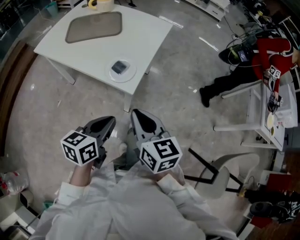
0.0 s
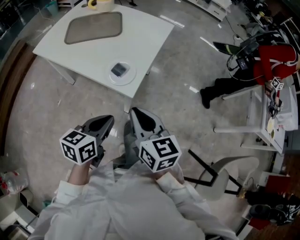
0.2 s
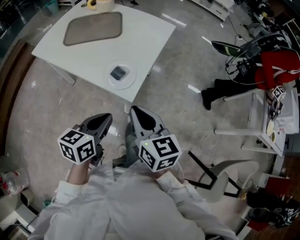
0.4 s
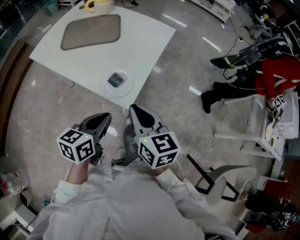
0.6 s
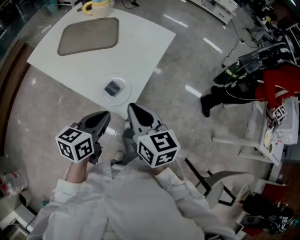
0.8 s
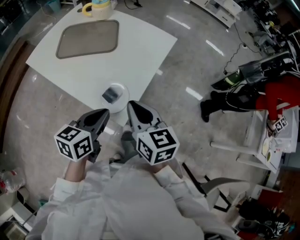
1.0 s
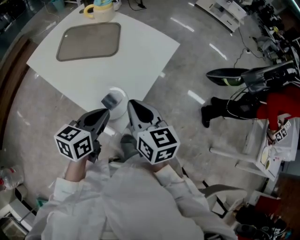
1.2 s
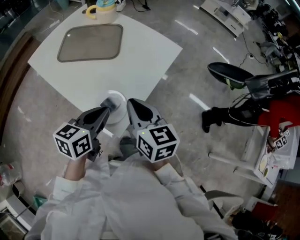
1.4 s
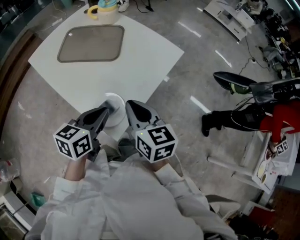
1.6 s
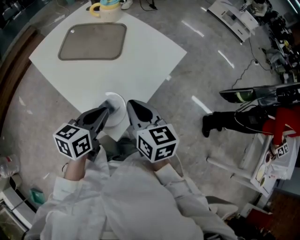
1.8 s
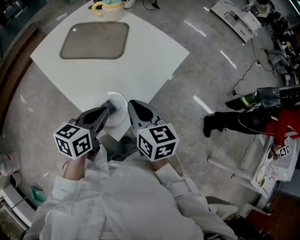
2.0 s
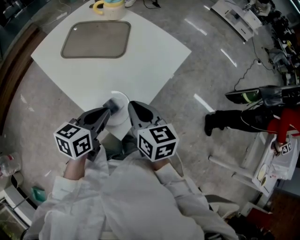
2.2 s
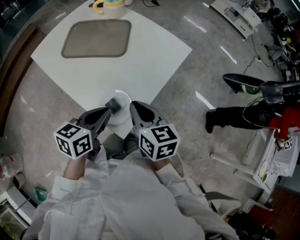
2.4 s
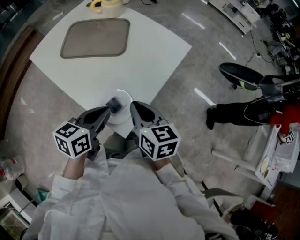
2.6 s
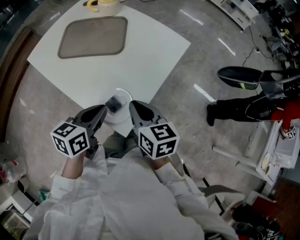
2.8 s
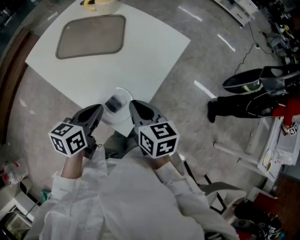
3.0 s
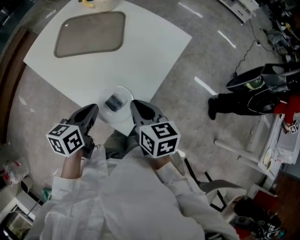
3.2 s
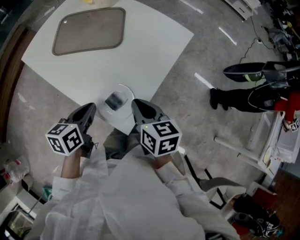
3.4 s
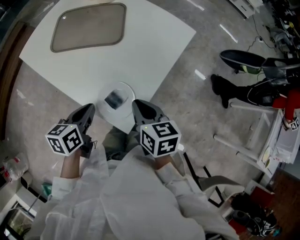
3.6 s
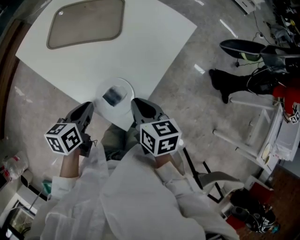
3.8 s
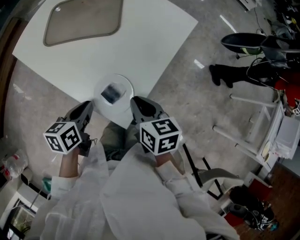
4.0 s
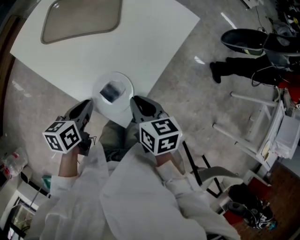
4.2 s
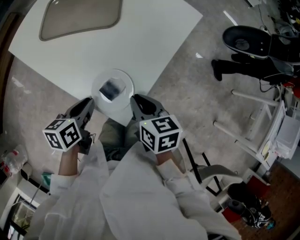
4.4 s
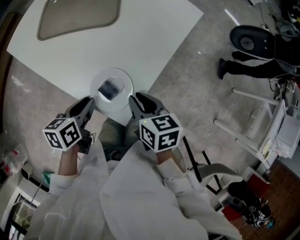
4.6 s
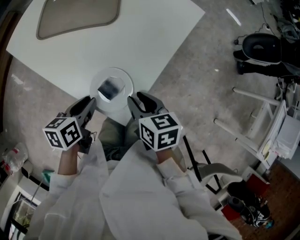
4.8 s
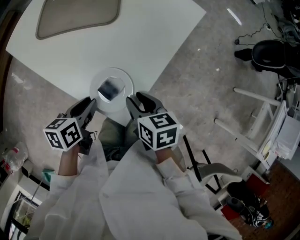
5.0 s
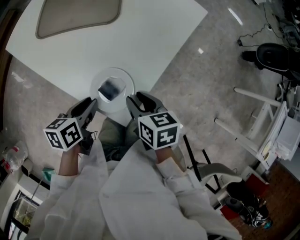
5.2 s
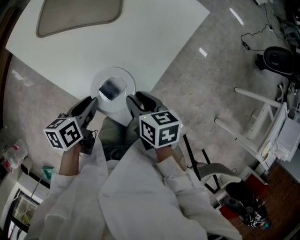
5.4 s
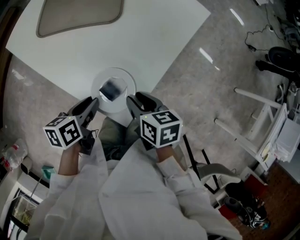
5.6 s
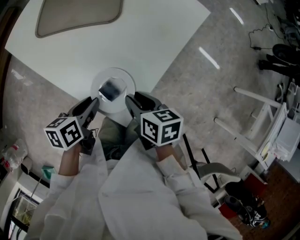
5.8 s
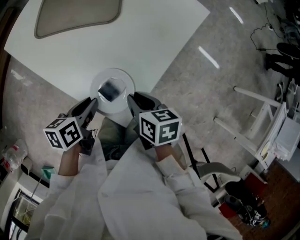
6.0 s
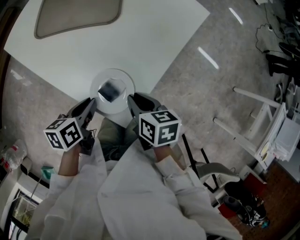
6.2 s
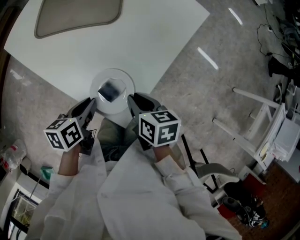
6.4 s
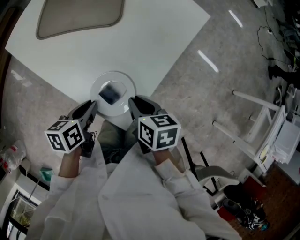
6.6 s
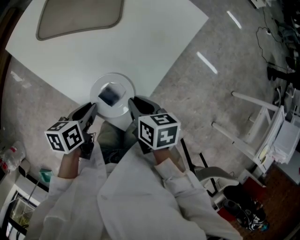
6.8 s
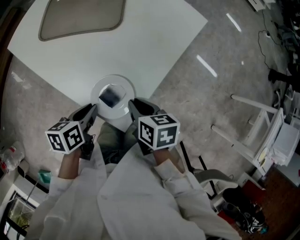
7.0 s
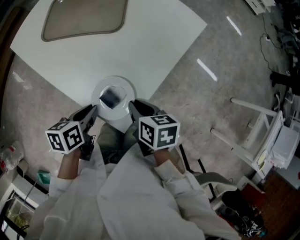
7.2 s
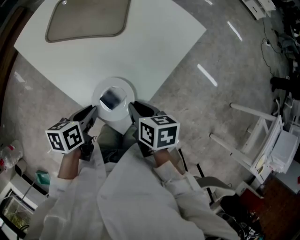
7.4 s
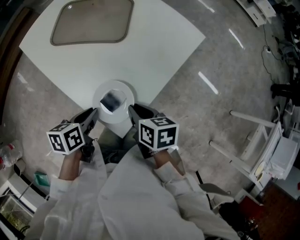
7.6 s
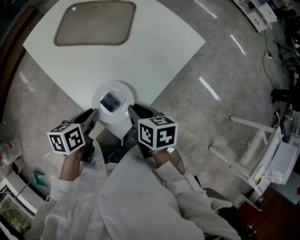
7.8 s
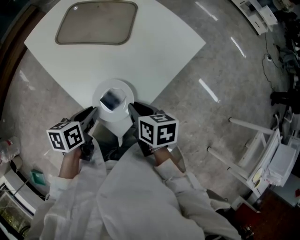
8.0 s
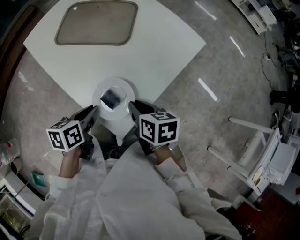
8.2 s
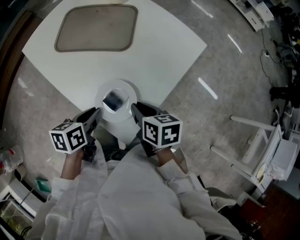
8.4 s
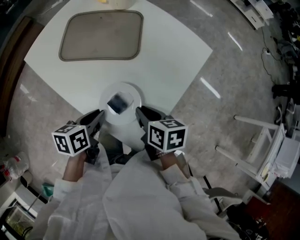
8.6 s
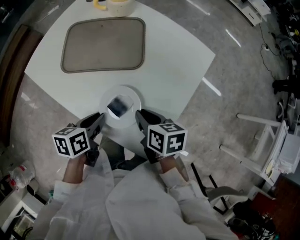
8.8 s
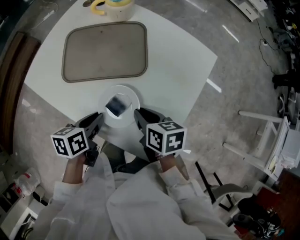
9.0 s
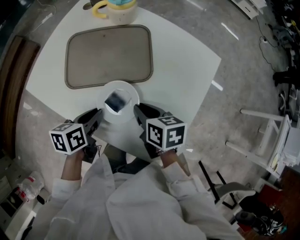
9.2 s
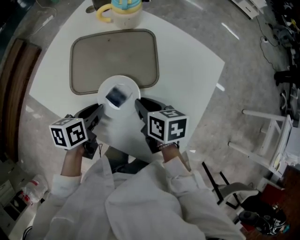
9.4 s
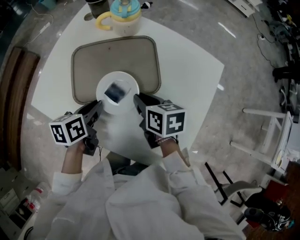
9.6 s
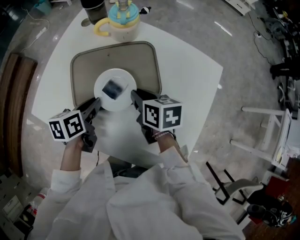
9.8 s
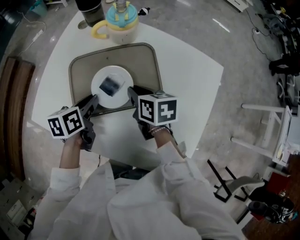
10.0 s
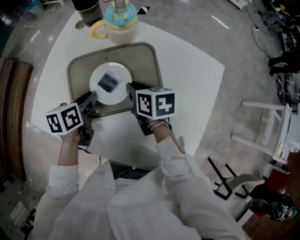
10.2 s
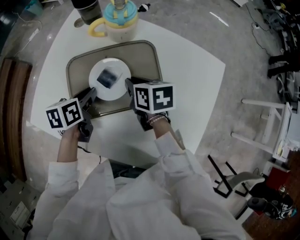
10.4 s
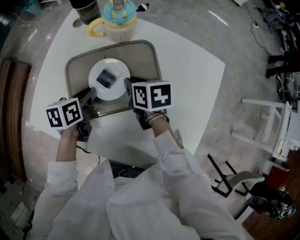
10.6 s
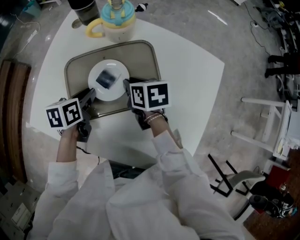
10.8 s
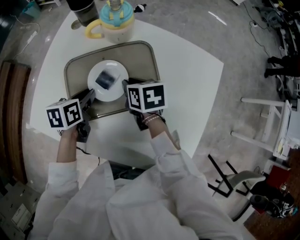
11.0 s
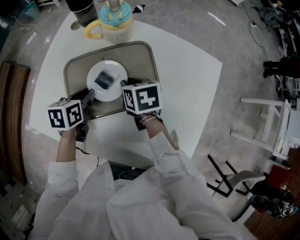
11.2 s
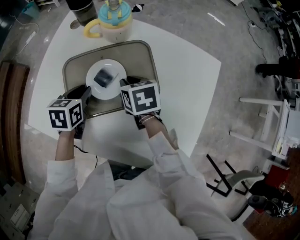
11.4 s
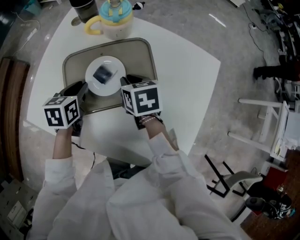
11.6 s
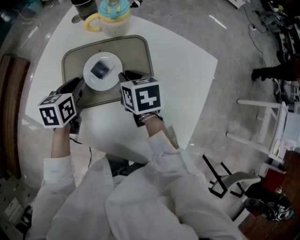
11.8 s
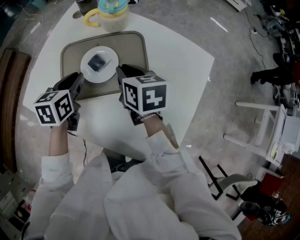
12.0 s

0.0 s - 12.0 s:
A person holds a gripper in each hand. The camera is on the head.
0.0 s - 1.6 s: The two grippers go some 25 cm forward.
1.6 s - 3.0 s: The left gripper moves to the left, about 5 cm. The right gripper is displaced downward by some 5 cm.
3.0 s - 4.4 s: Both grippers travel together downward, approximately 10 cm.
4.4 s - 7.6 s: The grippers stay close to where they were, moving slightly.
7.6 s - 9.0 s: Both grippers move forward and to the left, roughly 15 cm.
9.0 s - 10.4 s: The two grippers go some 25 cm forward and to the left.
10.4 s - 12.0 s: Both grippers move upward, some 5 cm. The left gripper swivels approximately 20 degrees.

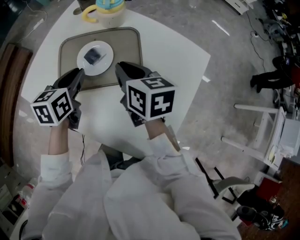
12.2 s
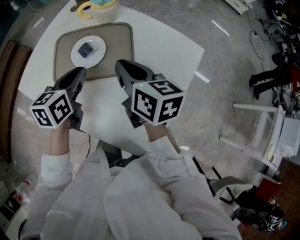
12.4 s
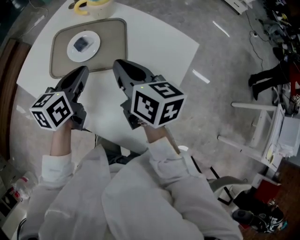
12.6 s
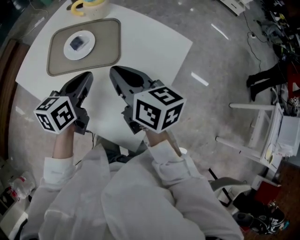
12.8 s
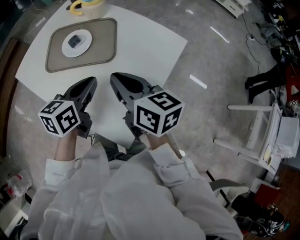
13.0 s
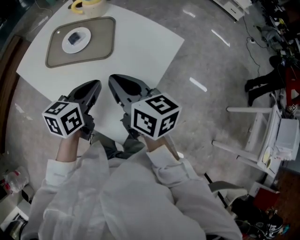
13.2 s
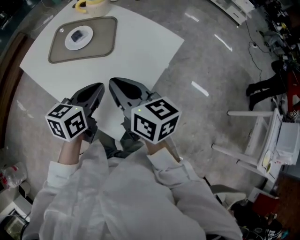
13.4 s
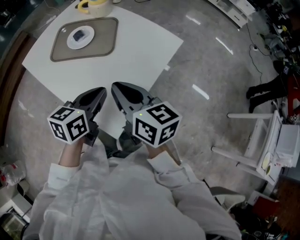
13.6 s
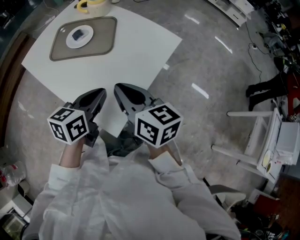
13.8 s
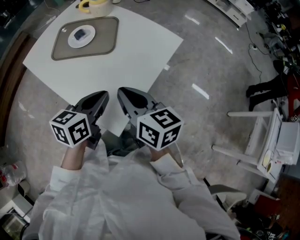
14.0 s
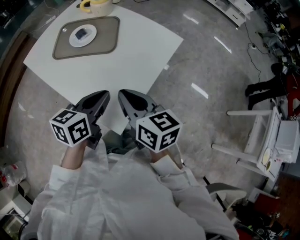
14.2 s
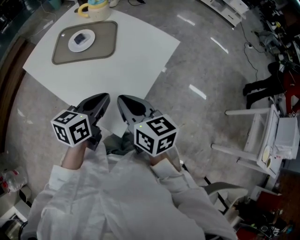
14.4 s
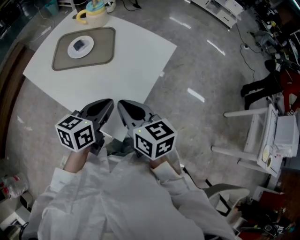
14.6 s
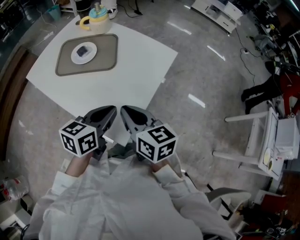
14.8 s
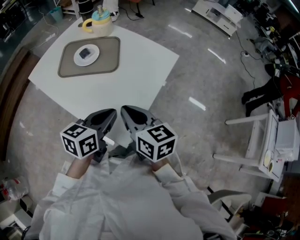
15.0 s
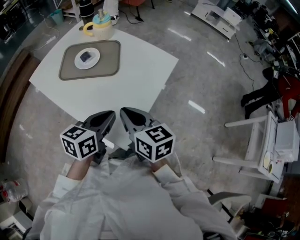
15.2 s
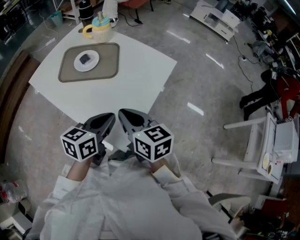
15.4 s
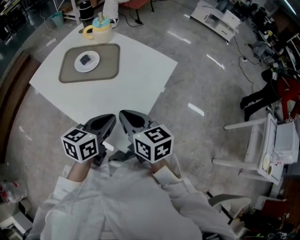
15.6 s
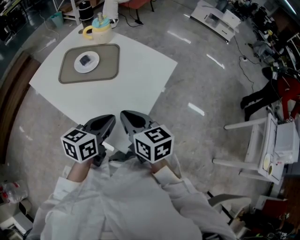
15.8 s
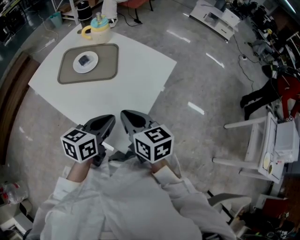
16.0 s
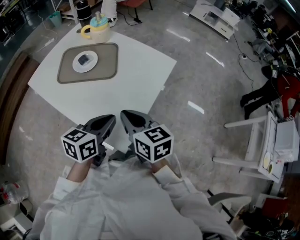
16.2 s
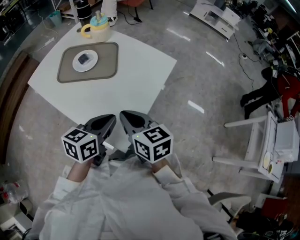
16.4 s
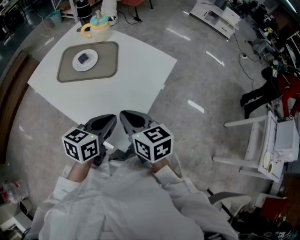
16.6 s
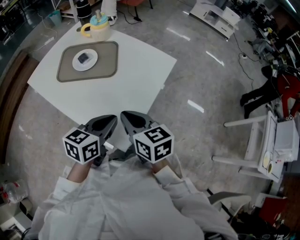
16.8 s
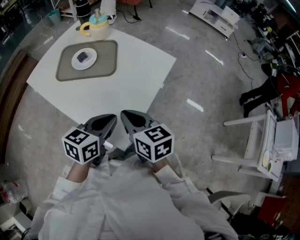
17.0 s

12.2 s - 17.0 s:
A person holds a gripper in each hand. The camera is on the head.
12.2 s - 13.8 s: Both grippers travel together backward and to the right, roughly 30 cm.
13.8 s - 17.0 s: There are only small adjustments of the grippers.

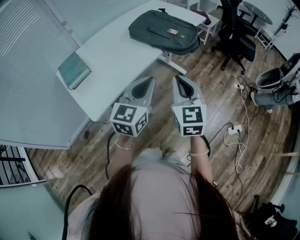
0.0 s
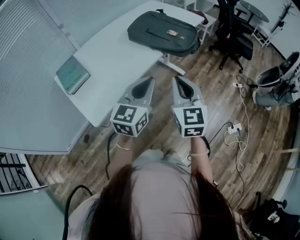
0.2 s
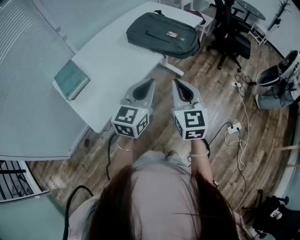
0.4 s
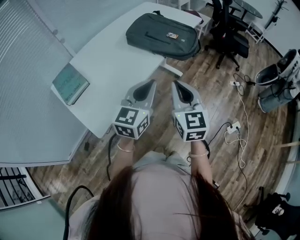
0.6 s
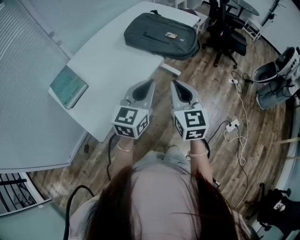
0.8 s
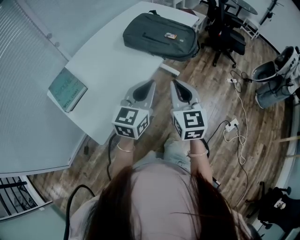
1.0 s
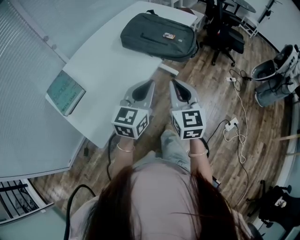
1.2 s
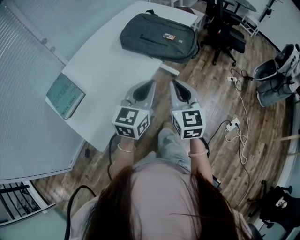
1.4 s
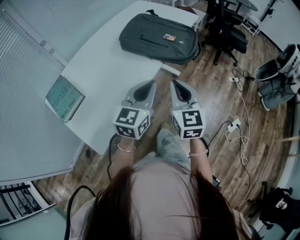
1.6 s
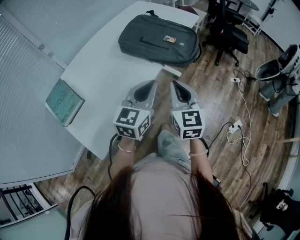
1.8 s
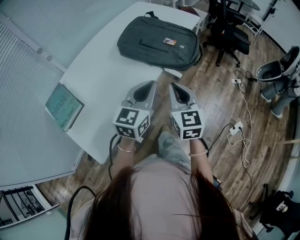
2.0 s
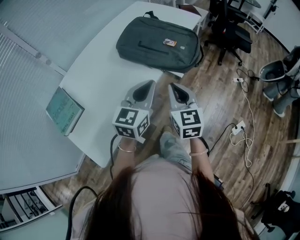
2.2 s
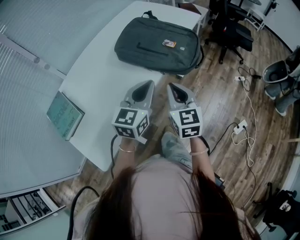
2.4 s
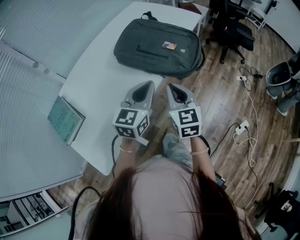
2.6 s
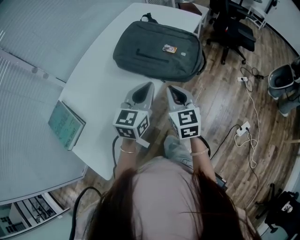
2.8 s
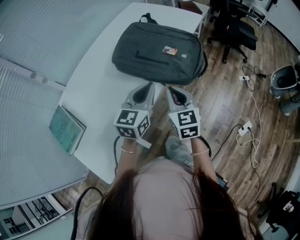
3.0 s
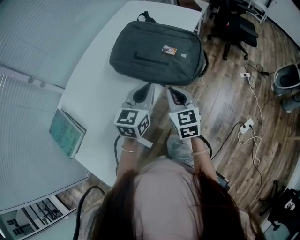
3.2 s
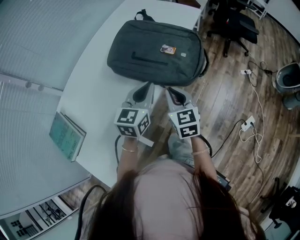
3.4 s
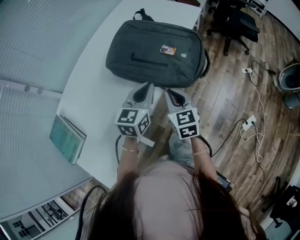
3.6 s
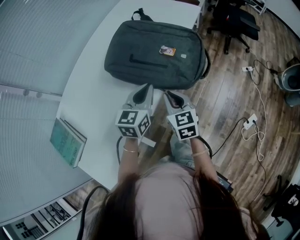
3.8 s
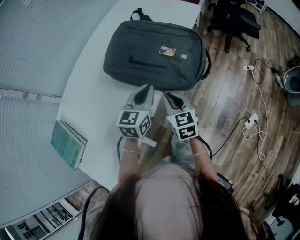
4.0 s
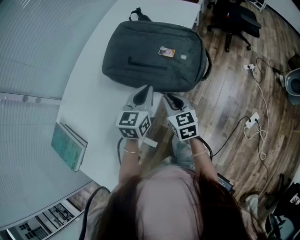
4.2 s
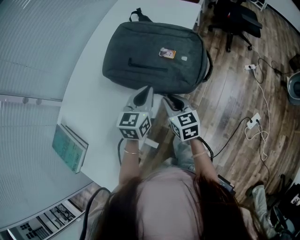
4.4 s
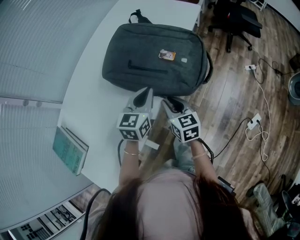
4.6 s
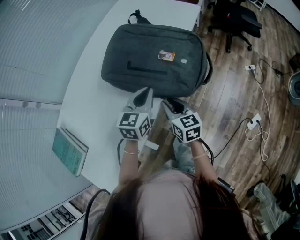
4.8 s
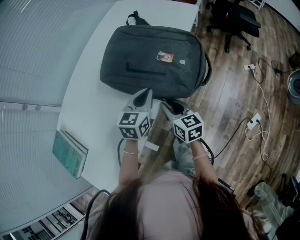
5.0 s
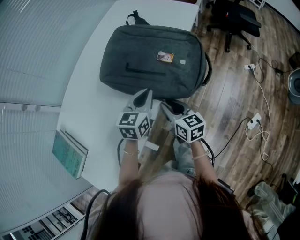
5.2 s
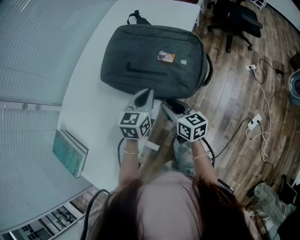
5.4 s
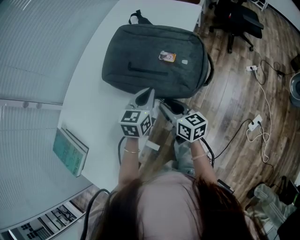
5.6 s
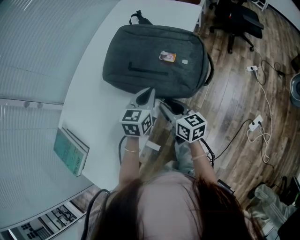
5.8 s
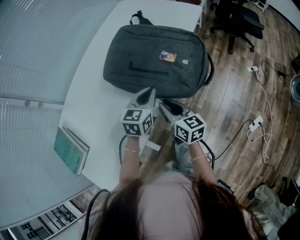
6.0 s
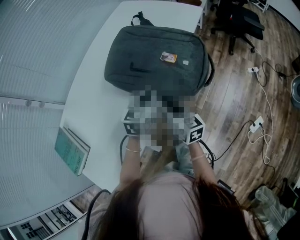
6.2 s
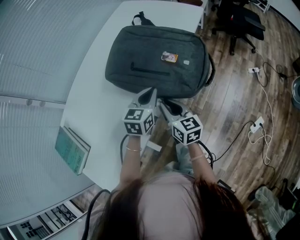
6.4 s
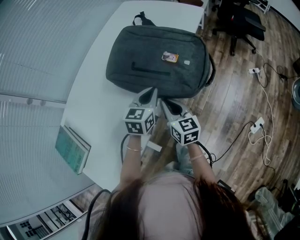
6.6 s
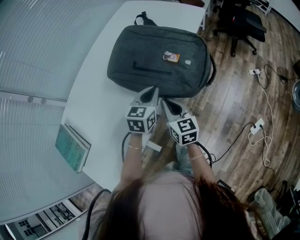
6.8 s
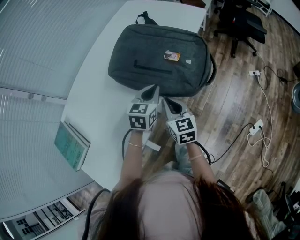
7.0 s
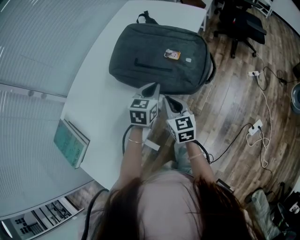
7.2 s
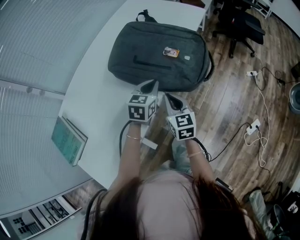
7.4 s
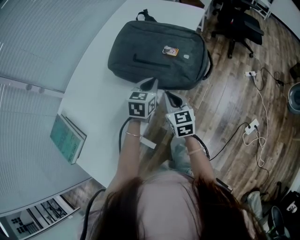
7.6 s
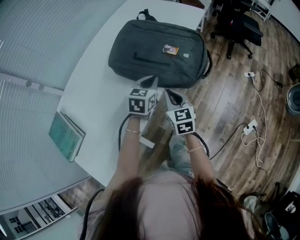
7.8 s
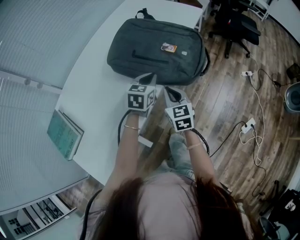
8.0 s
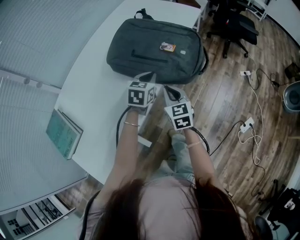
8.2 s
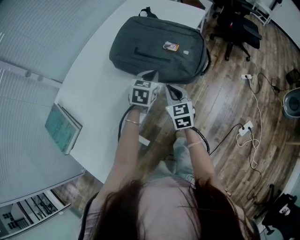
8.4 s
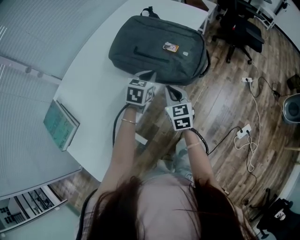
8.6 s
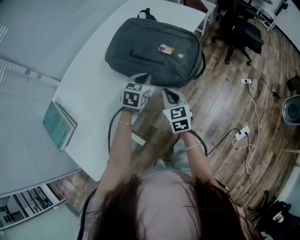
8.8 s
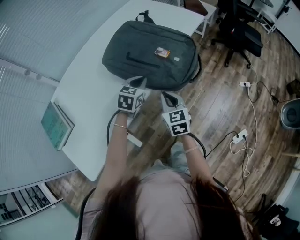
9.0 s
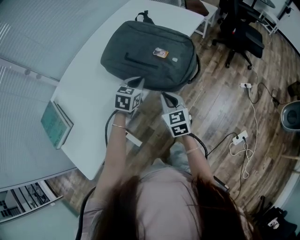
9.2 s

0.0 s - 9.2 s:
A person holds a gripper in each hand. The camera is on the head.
0.0 s - 1.6 s: Both grippers move forward and to the left, some 15 cm.
1.6 s - 3.0 s: The left gripper moves forward, about 15 cm. Meanwhile the right gripper travels forward and downward by about 15 cm.
3.0 s - 4.6 s: The left gripper shifts some 10 cm forward and downward; the right gripper shifts approximately 10 cm downward and forward.
6.2 s - 7.6 s: The right gripper rotates some 20 degrees.
7.6 s - 9.2 s: The right gripper shifts approximately 5 cm to the right.
